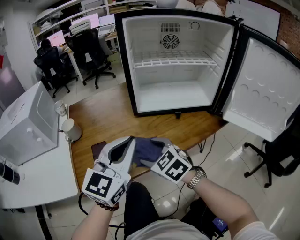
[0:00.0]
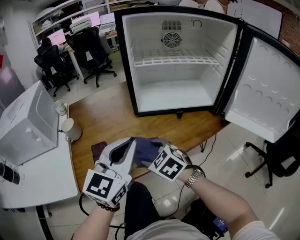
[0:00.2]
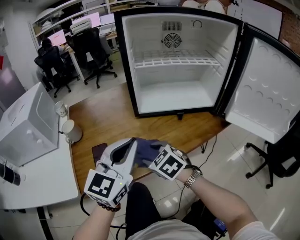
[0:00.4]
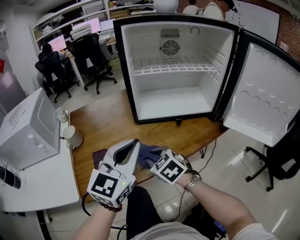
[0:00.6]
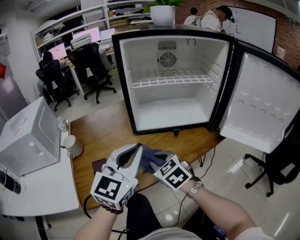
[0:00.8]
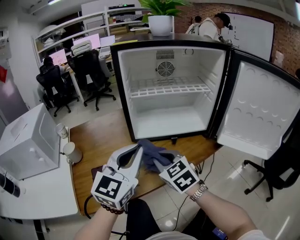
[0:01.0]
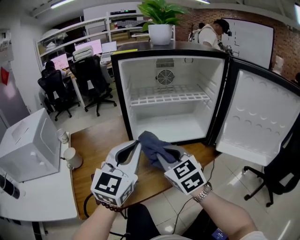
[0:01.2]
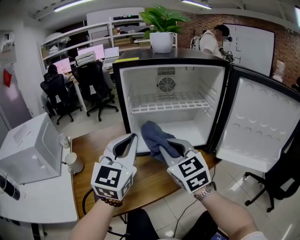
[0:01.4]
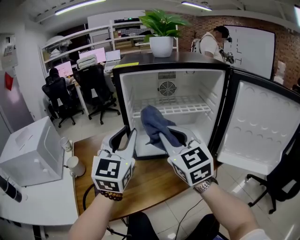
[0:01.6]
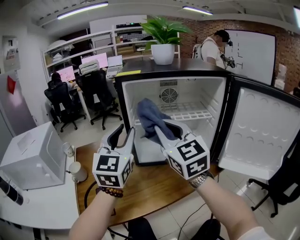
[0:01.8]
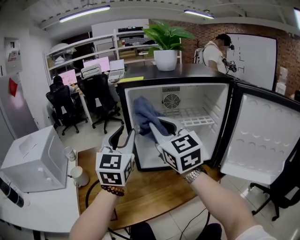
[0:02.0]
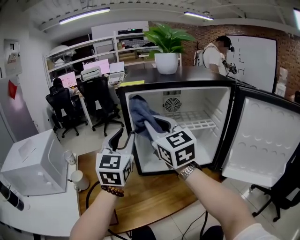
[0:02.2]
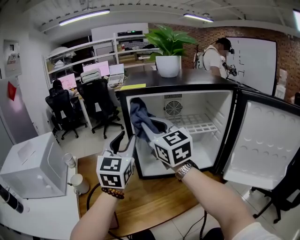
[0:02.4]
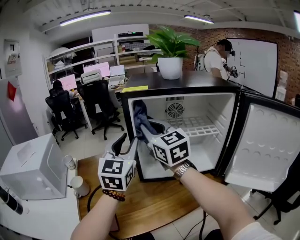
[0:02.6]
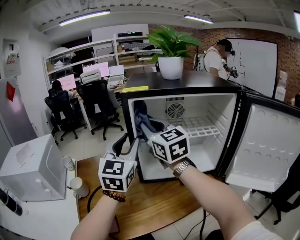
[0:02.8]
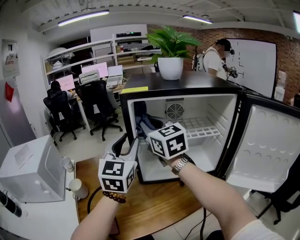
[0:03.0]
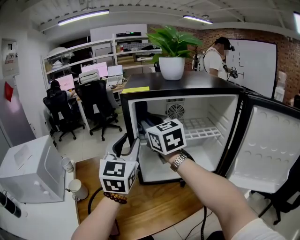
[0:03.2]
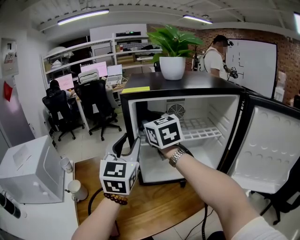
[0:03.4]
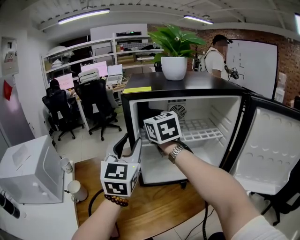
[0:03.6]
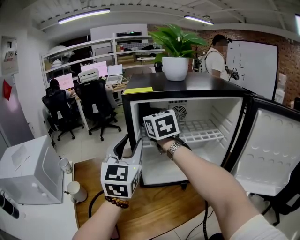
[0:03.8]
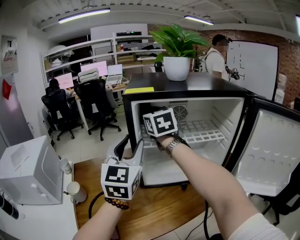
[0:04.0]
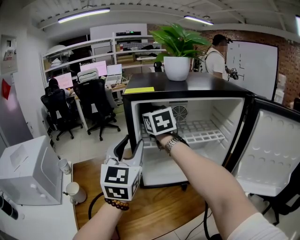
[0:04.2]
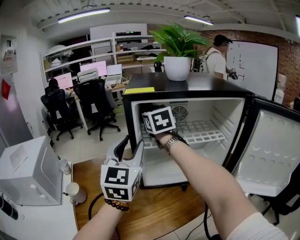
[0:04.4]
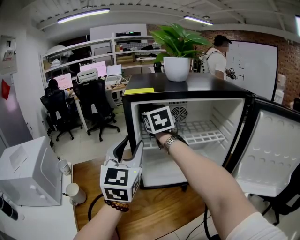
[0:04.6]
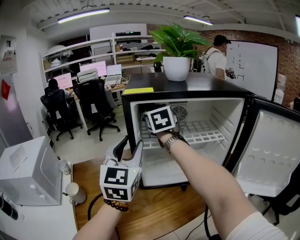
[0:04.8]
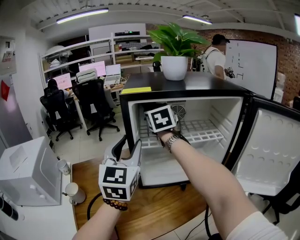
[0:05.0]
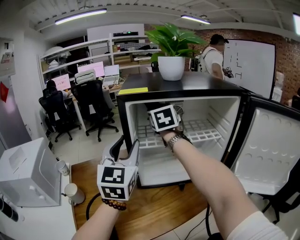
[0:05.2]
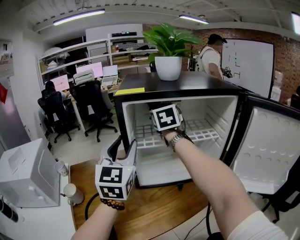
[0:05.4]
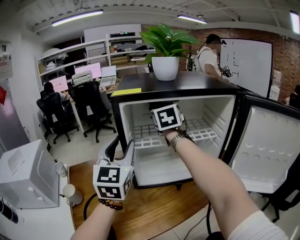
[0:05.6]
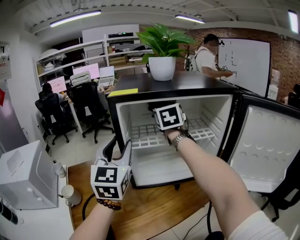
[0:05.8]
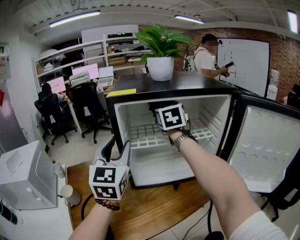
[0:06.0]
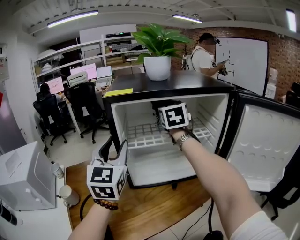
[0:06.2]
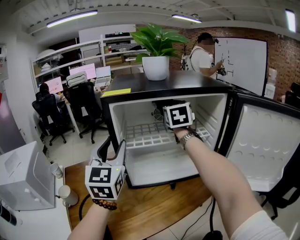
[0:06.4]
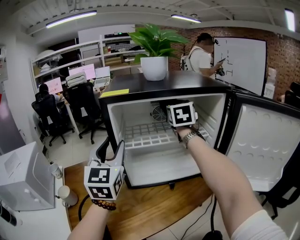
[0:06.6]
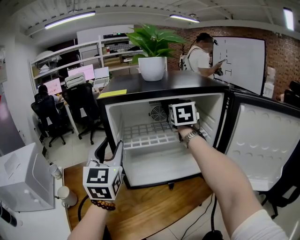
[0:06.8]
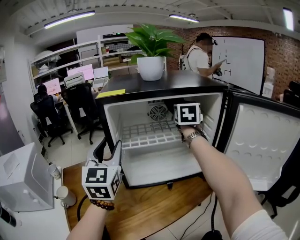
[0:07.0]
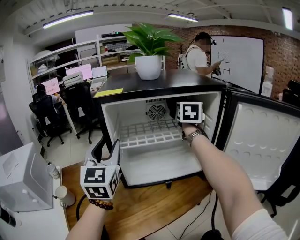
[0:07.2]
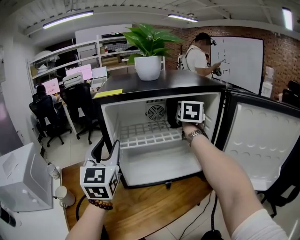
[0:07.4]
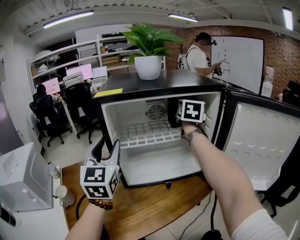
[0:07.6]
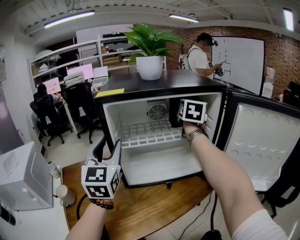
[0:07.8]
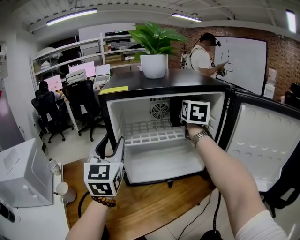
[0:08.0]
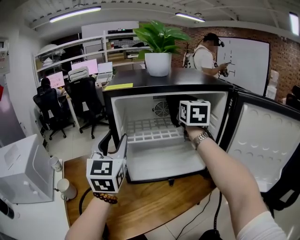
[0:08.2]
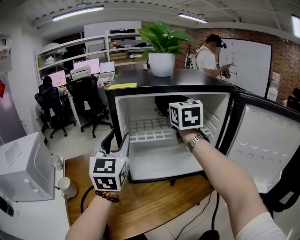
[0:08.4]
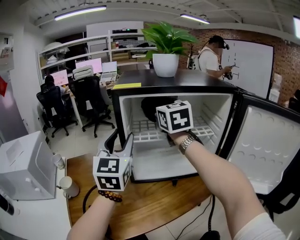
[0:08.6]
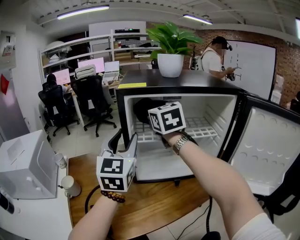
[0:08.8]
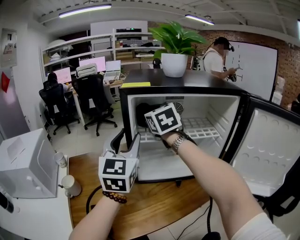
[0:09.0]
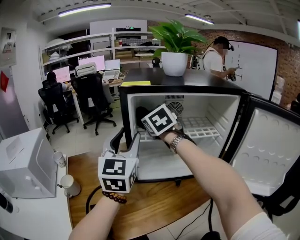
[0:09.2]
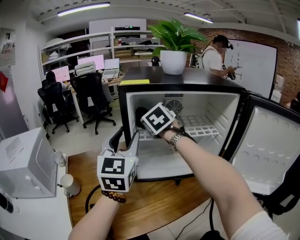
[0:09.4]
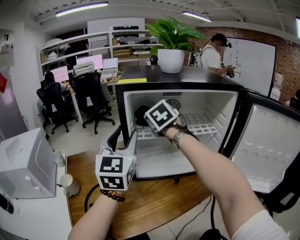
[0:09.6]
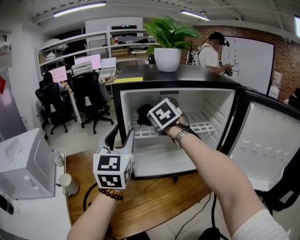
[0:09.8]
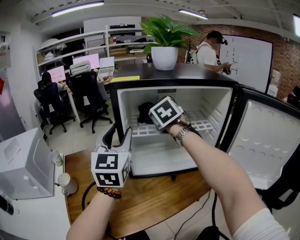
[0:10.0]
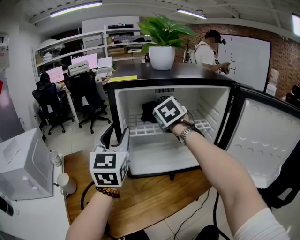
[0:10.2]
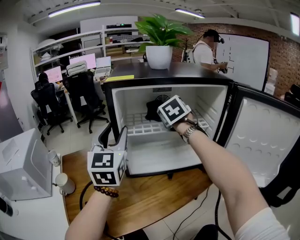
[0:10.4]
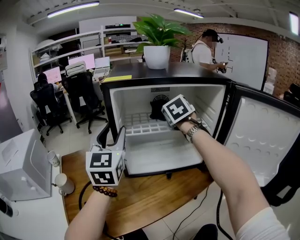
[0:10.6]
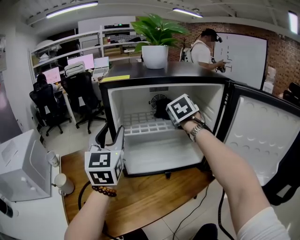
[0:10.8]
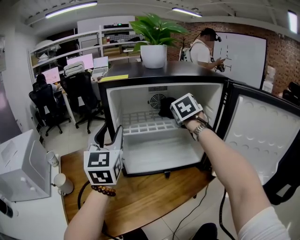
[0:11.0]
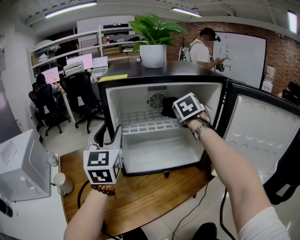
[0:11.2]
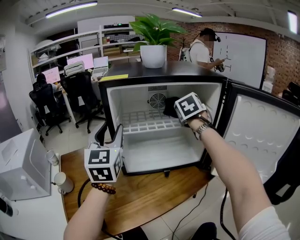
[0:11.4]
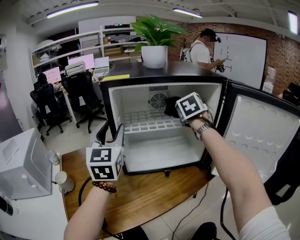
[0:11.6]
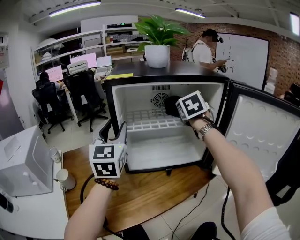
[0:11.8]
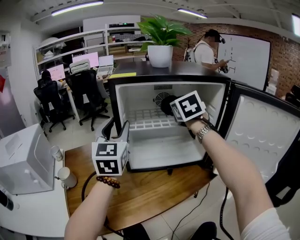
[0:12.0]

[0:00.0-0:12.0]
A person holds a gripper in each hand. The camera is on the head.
0:00.0 to 0:01.6: The left gripper heads upward and forward, covering roughly 20 cm, and opens; the right gripper travels upward and to the right by approximately 30 cm, tips its fingers upward by some 40 degrees, and closes up.
0:01.6 to 0:03.0: The left gripper moves forward, about 10 cm. The right gripper heads forward, covering about 15 cm.
0:03.0 to 0:04.4: The right gripper moves forward, about 10 cm.
0:04.4 to 0:06.0: The right gripper heads to the right, covering some 15 cm.
0:06.0 to 0:07.6: The right gripper is displaced to the right by some 15 cm, and turns by approximately 20 degrees.
0:07.6 to 0:09.0: The right gripper moves to the left, roughly 25 cm, and swivels about 40 degrees.
0:09.0 to 0:10.4: The right gripper heads to the right, covering approximately 15 cm, and changes its angle by some 30 degrees.
0:10.4 to 0:12.0: The right gripper travels to the right and back again, approximately 10 cm each way.

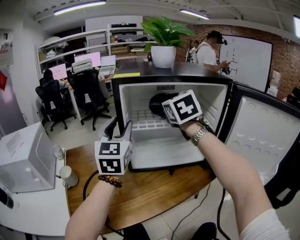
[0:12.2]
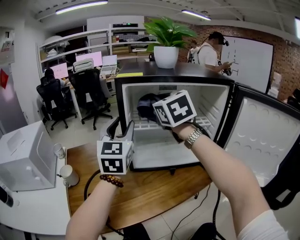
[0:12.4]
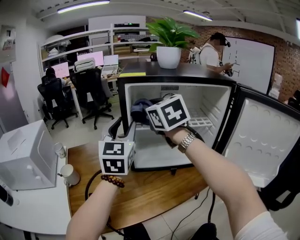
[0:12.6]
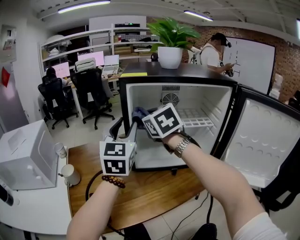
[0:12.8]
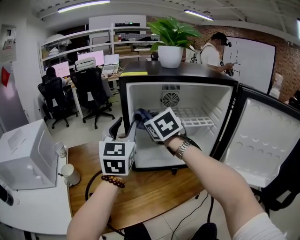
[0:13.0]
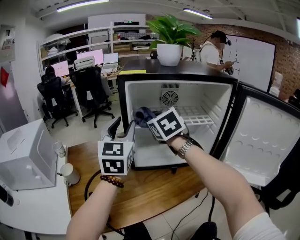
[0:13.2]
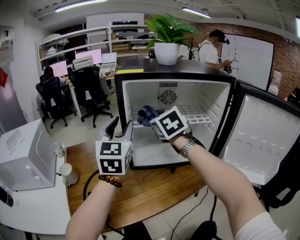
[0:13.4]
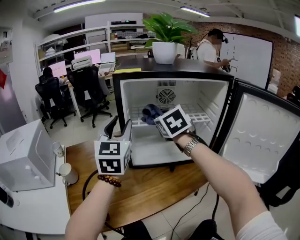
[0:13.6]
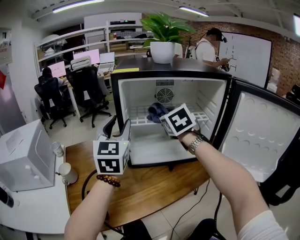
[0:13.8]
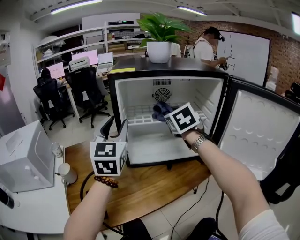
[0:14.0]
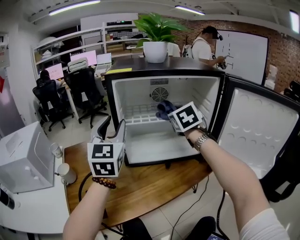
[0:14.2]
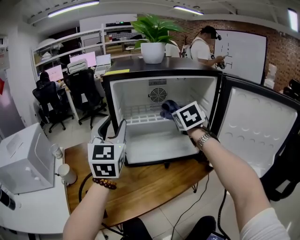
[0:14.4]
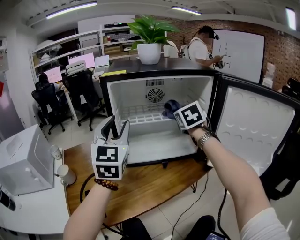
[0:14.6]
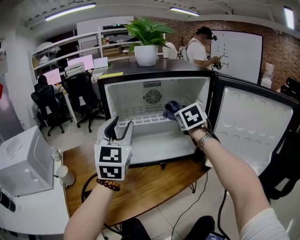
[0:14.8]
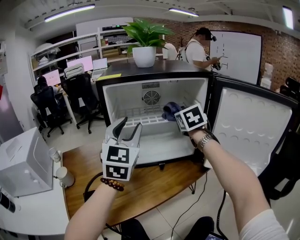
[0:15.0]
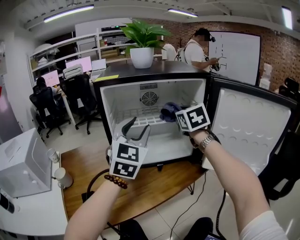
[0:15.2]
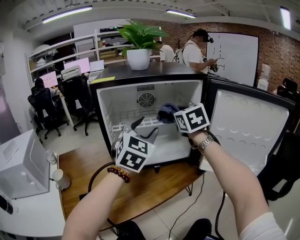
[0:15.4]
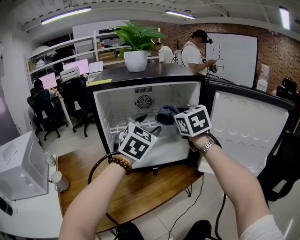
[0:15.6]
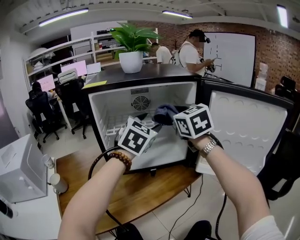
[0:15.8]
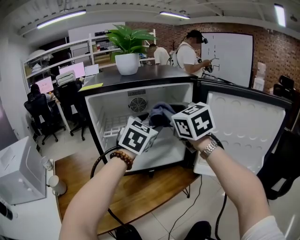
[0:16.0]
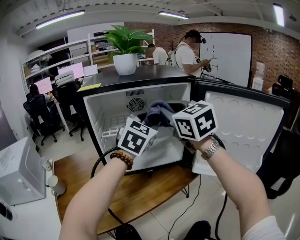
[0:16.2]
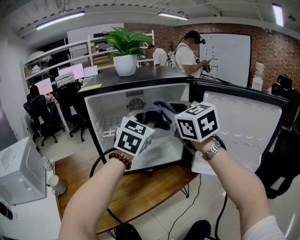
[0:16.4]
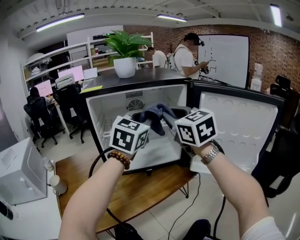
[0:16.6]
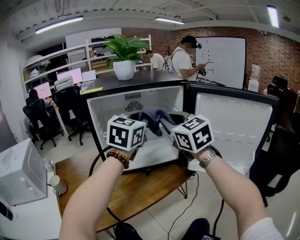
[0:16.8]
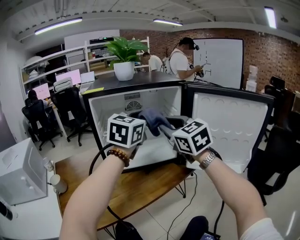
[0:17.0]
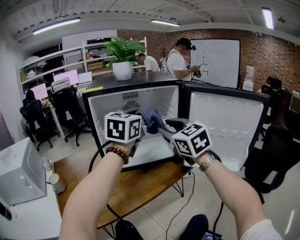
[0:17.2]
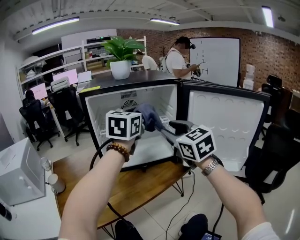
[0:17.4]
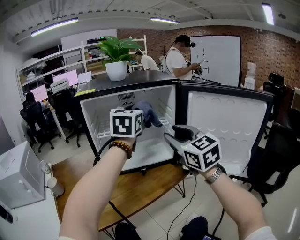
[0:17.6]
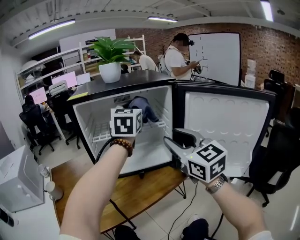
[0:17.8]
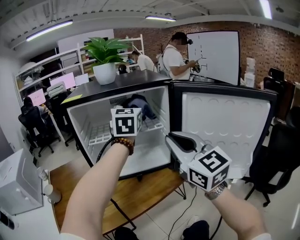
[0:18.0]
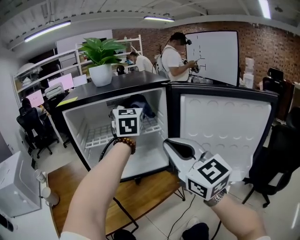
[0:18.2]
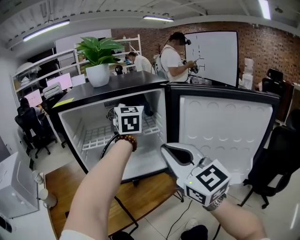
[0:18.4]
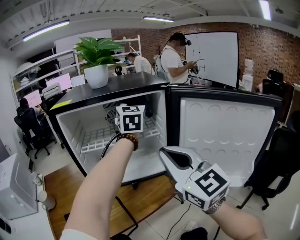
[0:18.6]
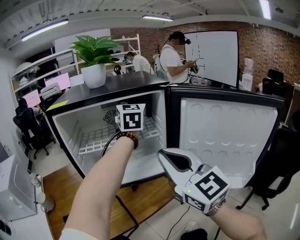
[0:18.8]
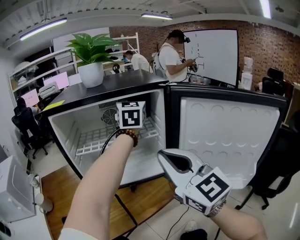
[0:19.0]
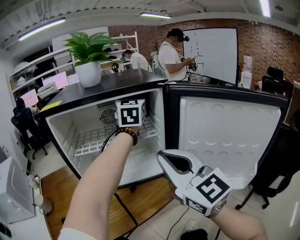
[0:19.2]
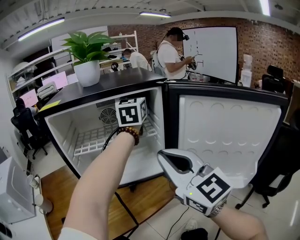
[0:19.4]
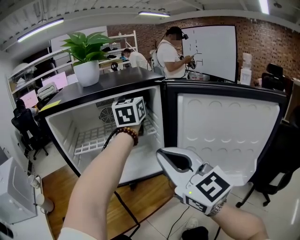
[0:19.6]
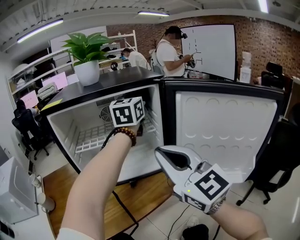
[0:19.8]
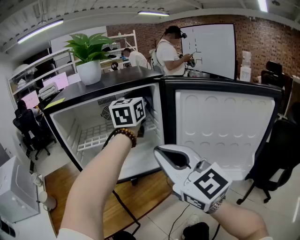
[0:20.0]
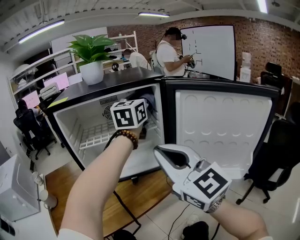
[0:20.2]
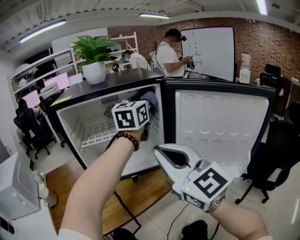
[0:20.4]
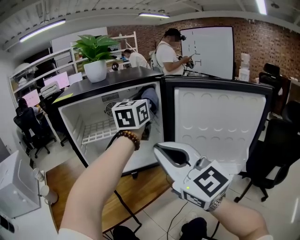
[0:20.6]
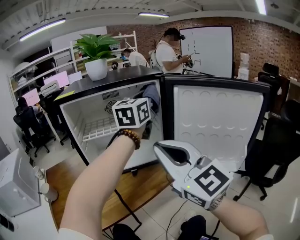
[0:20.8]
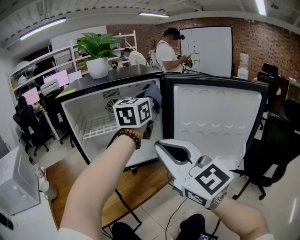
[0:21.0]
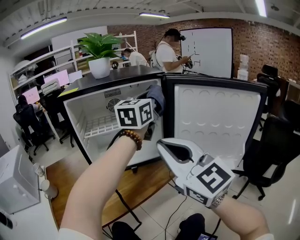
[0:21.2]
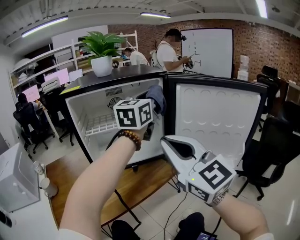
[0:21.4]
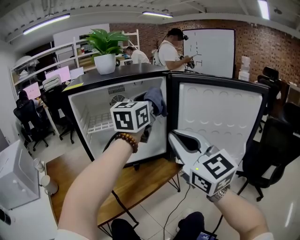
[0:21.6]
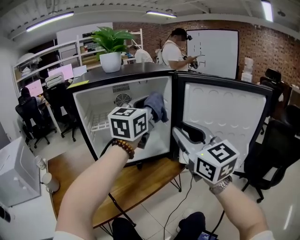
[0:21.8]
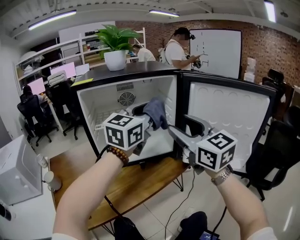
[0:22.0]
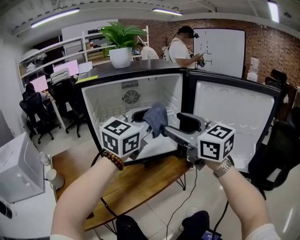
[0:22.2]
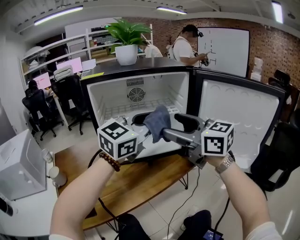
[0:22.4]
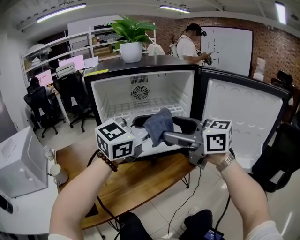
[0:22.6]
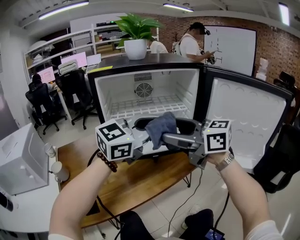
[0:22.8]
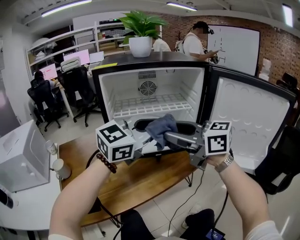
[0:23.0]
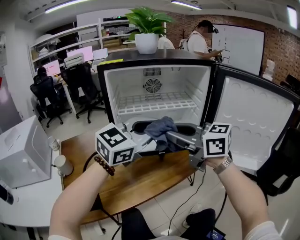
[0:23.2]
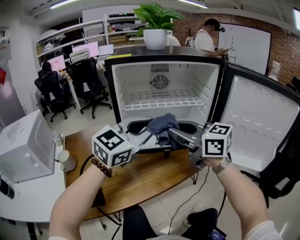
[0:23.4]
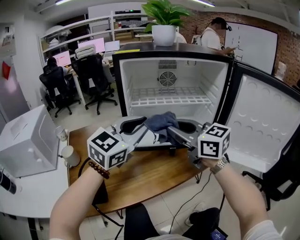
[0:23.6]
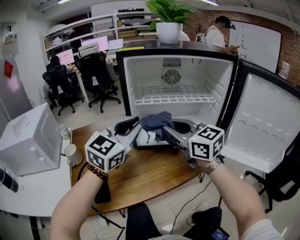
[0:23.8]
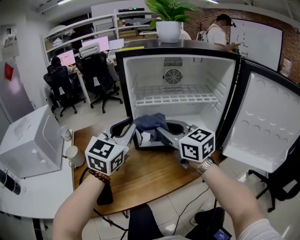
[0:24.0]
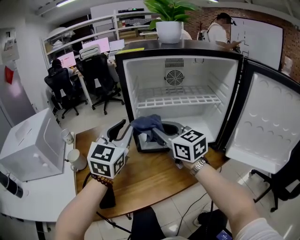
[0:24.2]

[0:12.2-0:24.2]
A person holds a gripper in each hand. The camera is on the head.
0:12.2 to 0:13.8: The right gripper is displaced downward by approximately 10 cm, and travels to the left and back again, about 10 cm each way.
0:13.8 to 0:15.2: The grippers both shift to the right by about 15 cm.
0:15.2 to 0:16.6: The left gripper is displaced to the right by some 10 cm, and closes its fingers; the right gripper shifts roughly 10 cm backward and upward.
0:16.6 to 0:18.2: The right gripper moves backward and to the right, about 10 cm. Meanwhile the left gripper moves forward, about 10 cm, and swivels approximately 20 degrees.
0:18.2 to 0:19.8: The left gripper goes some 5 cm to the right.
0:19.8 to 0:21.2: The right gripper heads backward, covering about 10 cm; the left gripper moves backward, some 15 cm.
0:21.2 to 0:22.6: The right gripper goes about 10 cm forward and to the left, swivels some 40 degrees, and opens its fingers. The left gripper is displaced backward, to the left and downward by roughly 20 cm, and rotates approximately 20 degrees.
0:22.6 to 0:24.2: The right gripper heads to the left, downward and forward, covering approximately 20 cm, and closes. Meanwhile the left gripper shifts some 25 cm to the left, changes its angle by roughly 50 degrees, and opens up.
